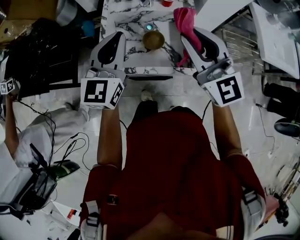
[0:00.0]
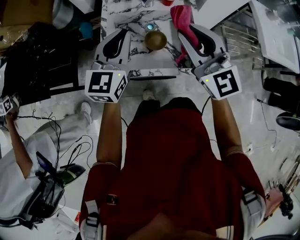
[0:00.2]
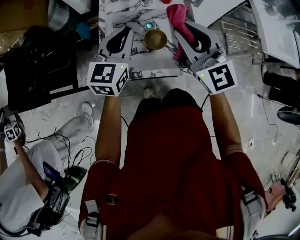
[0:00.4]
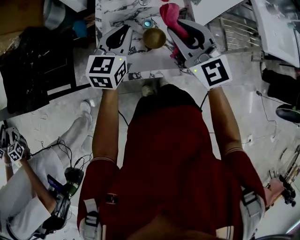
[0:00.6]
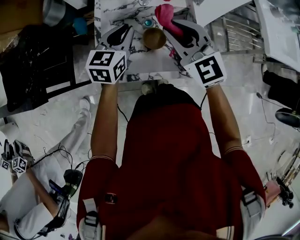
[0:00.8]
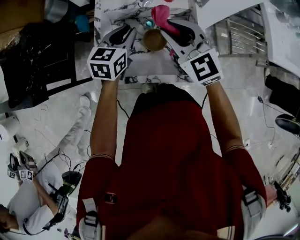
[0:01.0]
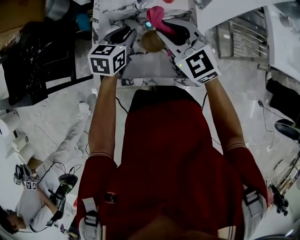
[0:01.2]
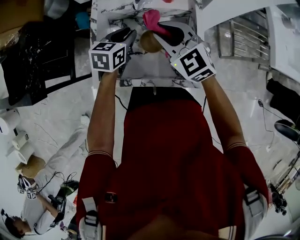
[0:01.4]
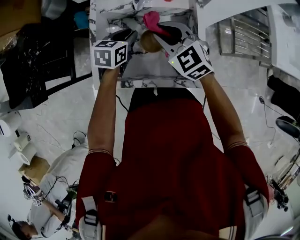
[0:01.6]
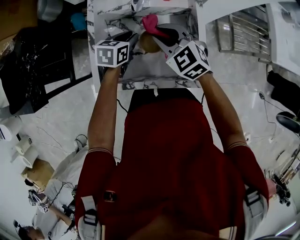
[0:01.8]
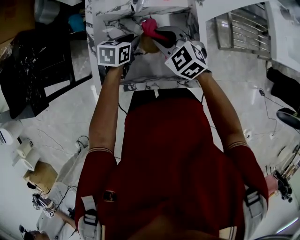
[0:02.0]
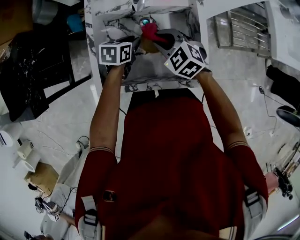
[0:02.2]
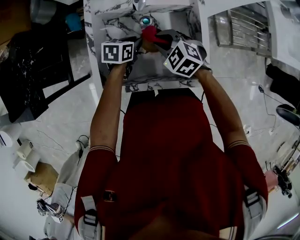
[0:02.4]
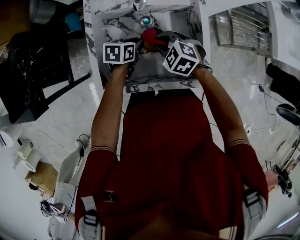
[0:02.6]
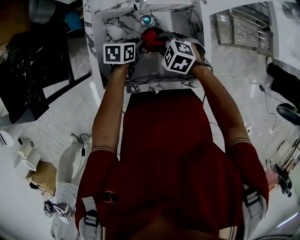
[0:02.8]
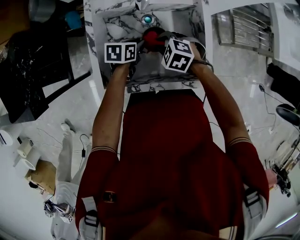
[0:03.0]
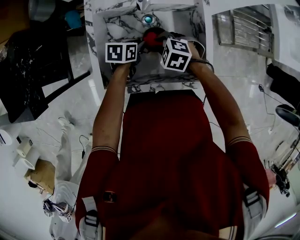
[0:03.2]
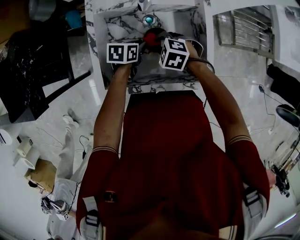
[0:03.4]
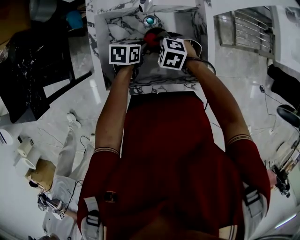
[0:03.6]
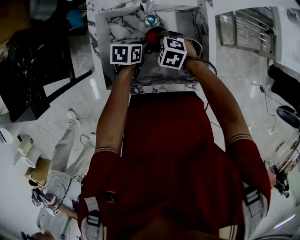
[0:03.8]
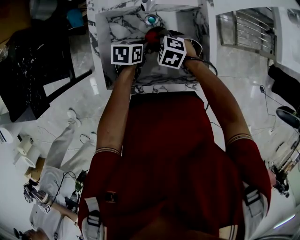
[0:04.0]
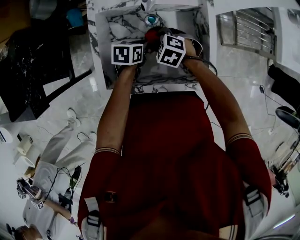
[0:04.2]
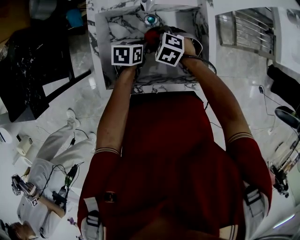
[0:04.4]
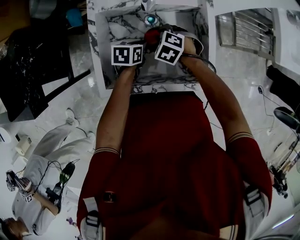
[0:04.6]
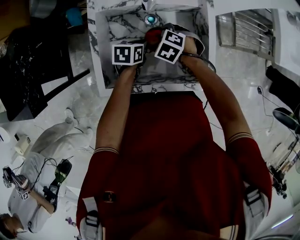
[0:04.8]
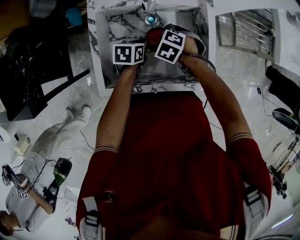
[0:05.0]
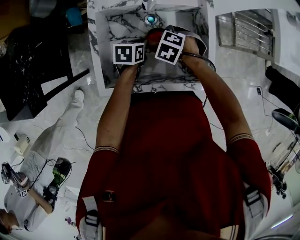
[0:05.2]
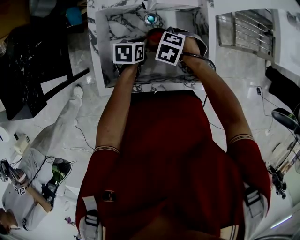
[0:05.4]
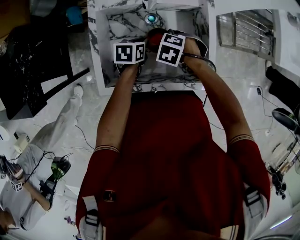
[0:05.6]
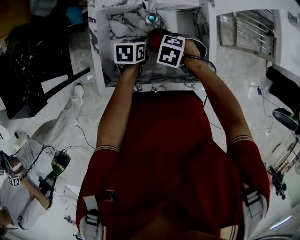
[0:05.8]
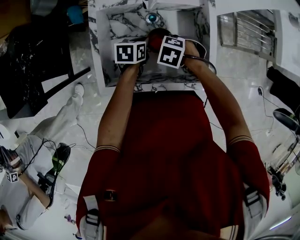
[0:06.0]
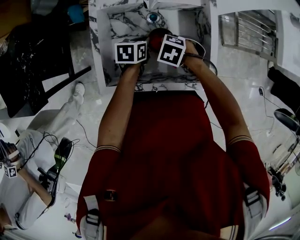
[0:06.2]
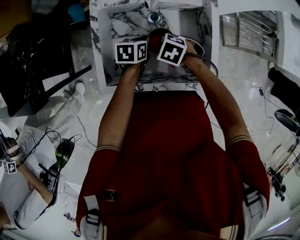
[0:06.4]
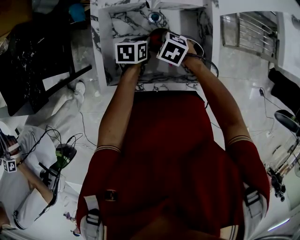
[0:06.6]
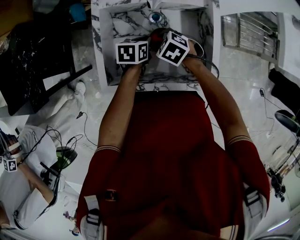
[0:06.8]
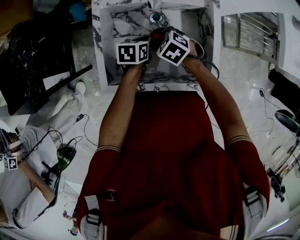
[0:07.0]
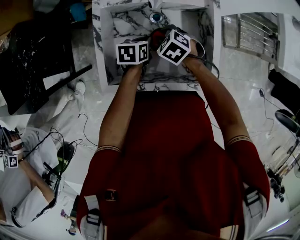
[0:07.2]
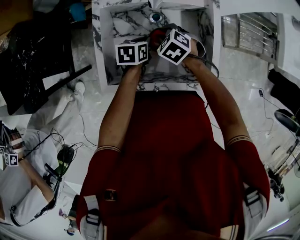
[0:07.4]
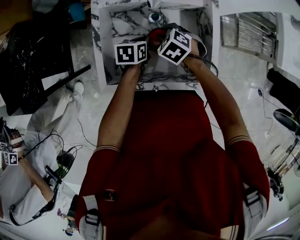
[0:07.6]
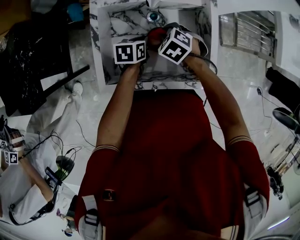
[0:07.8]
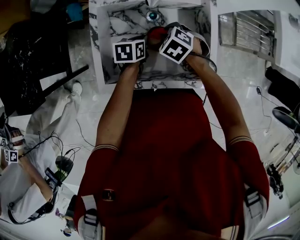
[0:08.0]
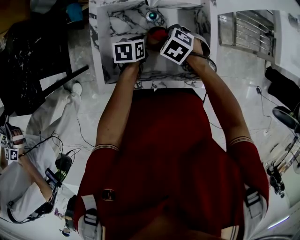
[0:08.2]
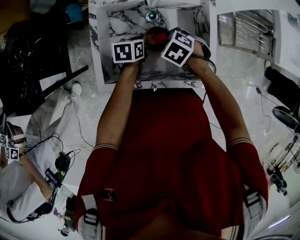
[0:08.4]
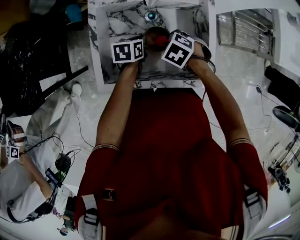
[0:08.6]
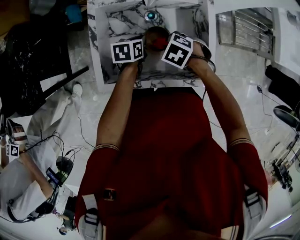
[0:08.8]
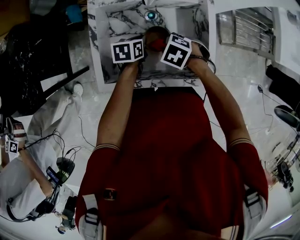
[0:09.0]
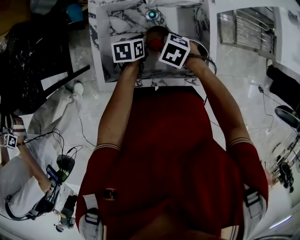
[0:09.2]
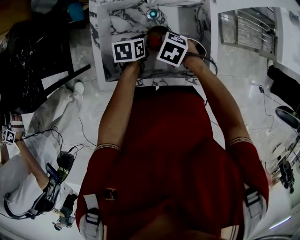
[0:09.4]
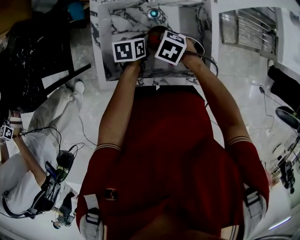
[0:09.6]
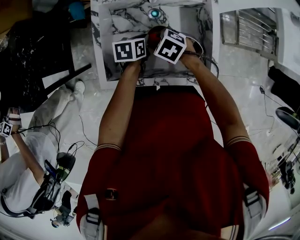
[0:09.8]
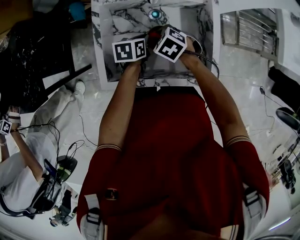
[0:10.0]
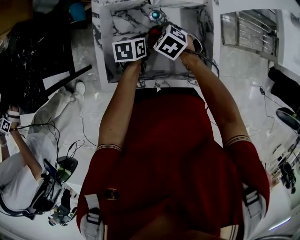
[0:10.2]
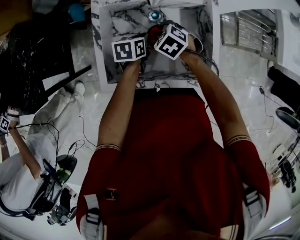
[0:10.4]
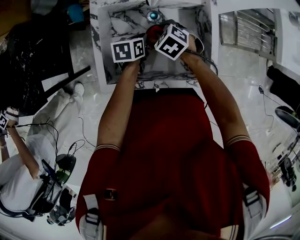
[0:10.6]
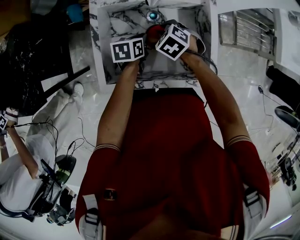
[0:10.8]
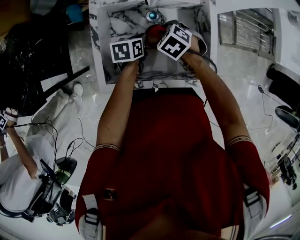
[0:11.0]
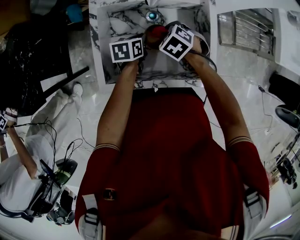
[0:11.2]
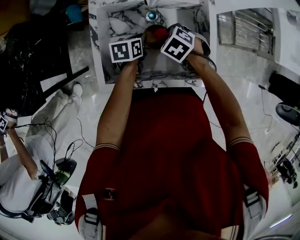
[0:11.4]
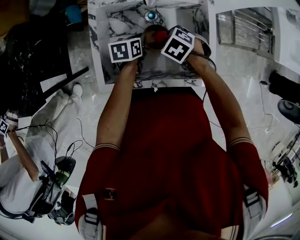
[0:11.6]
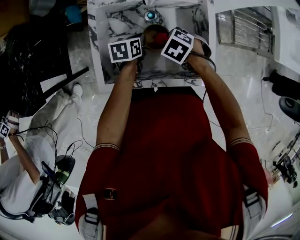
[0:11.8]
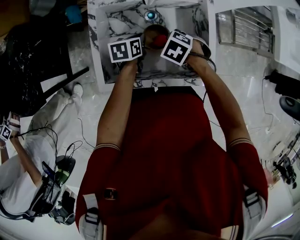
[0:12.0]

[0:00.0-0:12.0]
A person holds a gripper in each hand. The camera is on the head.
0.0 to 1.6 s: Both grippers travel together downward and forward, approximately 25 cm. The right gripper angles its fingers downward, by about 30 degrees. Meanwhile the left gripper points its fingers some 40 degrees further downward.
1.6 to 3.0 s: The two grippers go some 15 cm downward. The right gripper angles its fingers downward, by approximately 30 degrees; the left gripper changes its angle by some 20 degrees.
3.0 to 4.4 s: The right gripper changes place by approximately 5 cm.
4.4 to 6.0 s: The right gripper shifts by approximately 5 cm.
6.0 to 7.6 s: The right gripper changes place by some 5 cm, and swivels approximately 20 degrees.
7.6 to 9.0 s: The right gripper moves roughly 5 cm.
9.0 to 10.4 s: The right gripper shifts by about 10 cm.
10.4 to 12.0 s: The right gripper ends up some 5 cm from where it was.

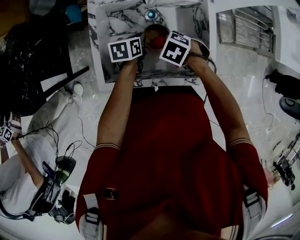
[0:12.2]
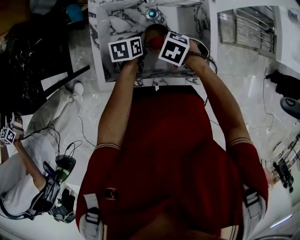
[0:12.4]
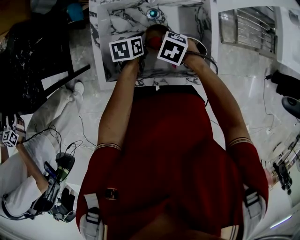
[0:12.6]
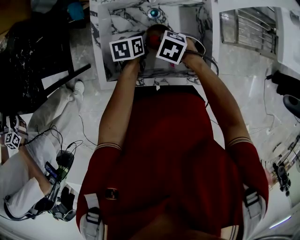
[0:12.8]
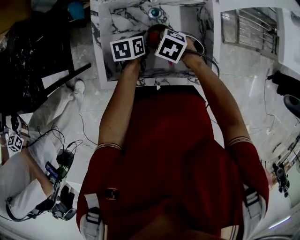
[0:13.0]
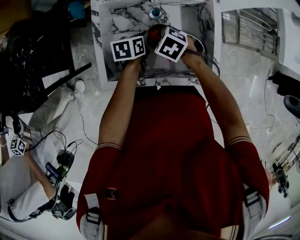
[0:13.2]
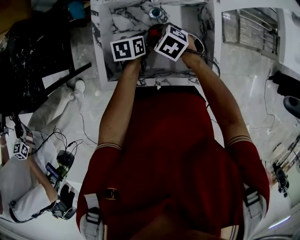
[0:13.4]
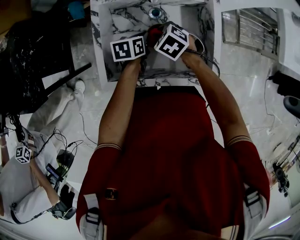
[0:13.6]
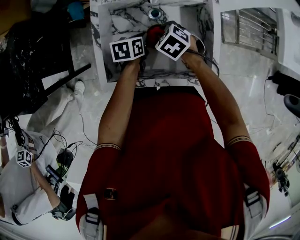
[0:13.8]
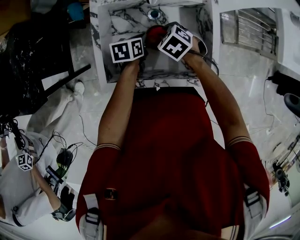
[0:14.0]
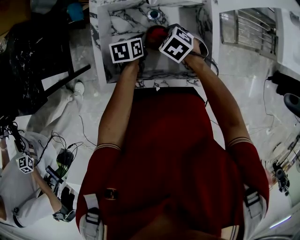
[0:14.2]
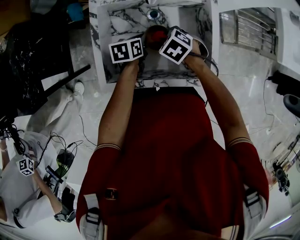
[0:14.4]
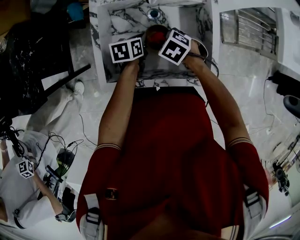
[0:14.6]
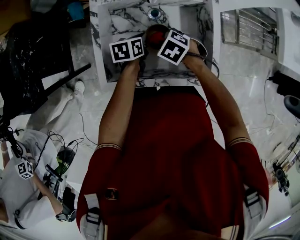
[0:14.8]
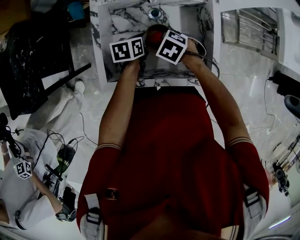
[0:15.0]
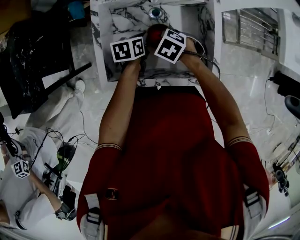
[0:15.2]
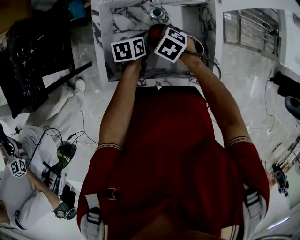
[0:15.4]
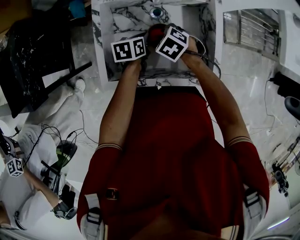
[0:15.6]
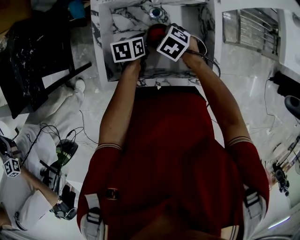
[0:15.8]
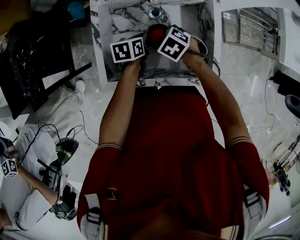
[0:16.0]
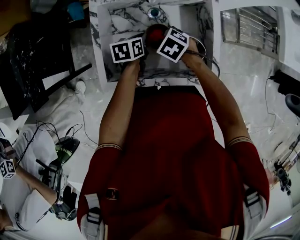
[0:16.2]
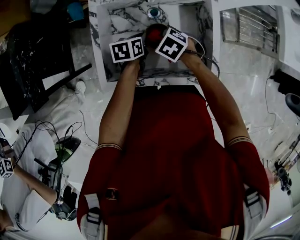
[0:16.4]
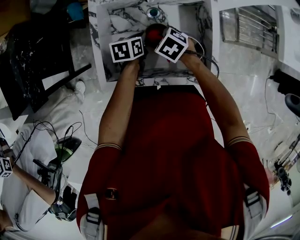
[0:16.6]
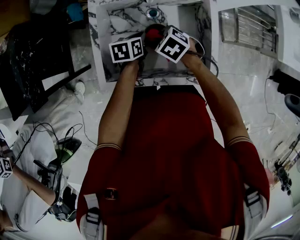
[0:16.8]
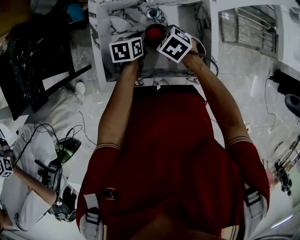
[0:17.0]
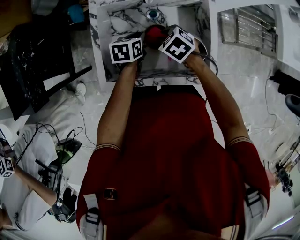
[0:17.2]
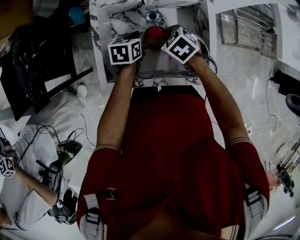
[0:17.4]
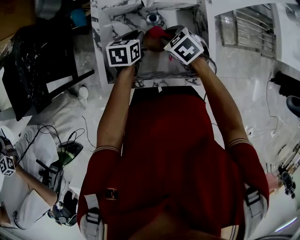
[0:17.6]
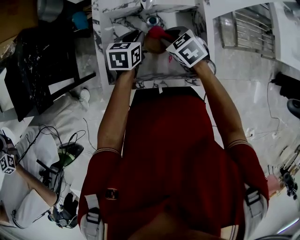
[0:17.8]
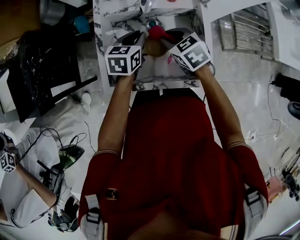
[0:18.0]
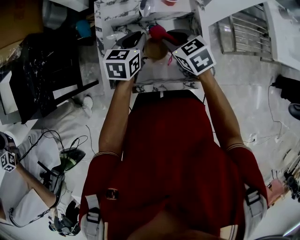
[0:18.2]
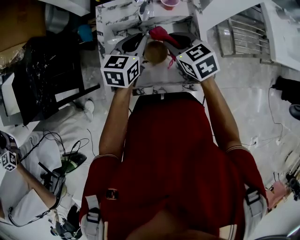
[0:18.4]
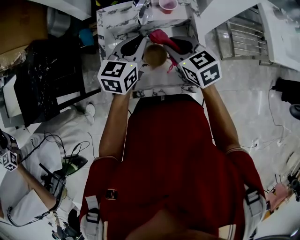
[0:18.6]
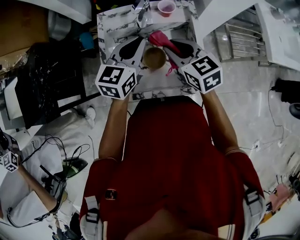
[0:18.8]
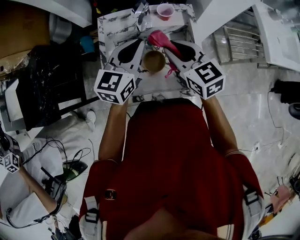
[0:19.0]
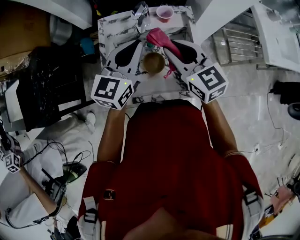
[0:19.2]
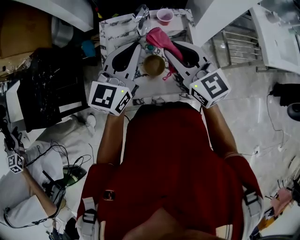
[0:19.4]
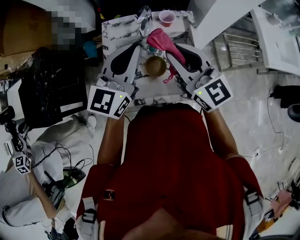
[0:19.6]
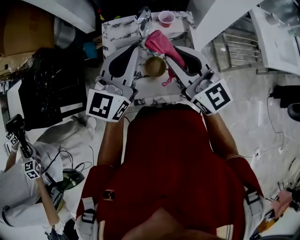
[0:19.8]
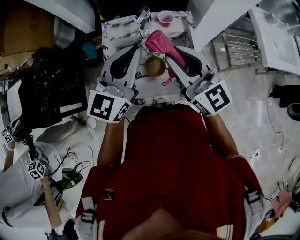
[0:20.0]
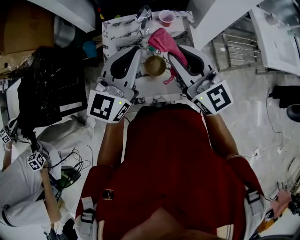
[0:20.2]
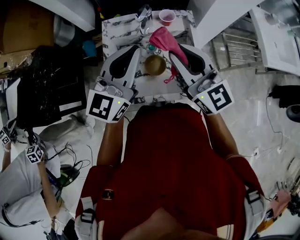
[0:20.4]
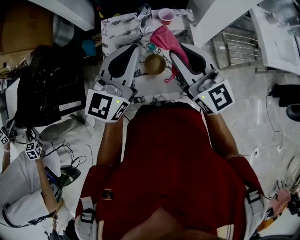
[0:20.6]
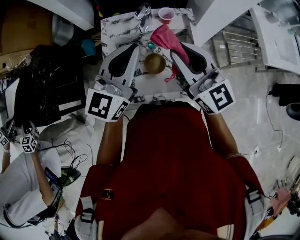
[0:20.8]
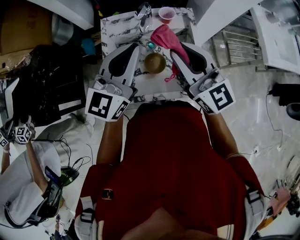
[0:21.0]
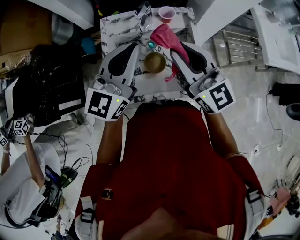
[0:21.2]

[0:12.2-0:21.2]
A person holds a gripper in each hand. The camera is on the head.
12.2 to 13.8 s: The right gripper shifts by some 5 cm.
13.8 to 16.6 s: The grippers move only a little.
16.6 to 18.2 s: The two grippers go about 15 cm upward. The left gripper swivels roughly 30 degrees. Meanwhile the right gripper rotates approximately 30 degrees.
18.2 to 19.8 s: Both grippers travel together upward, some 20 cm. The left gripper tips its fingers upward by about 40 degrees. Meanwhile the right gripper tilts its fingers about 50 degrees upward.
19.8 to 21.2 s: The two grippers keep their place.

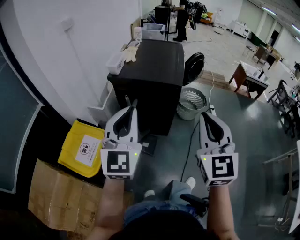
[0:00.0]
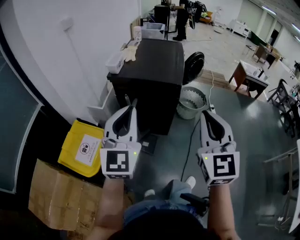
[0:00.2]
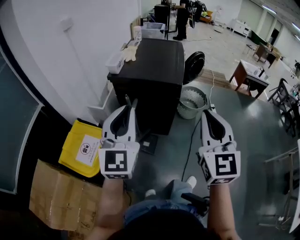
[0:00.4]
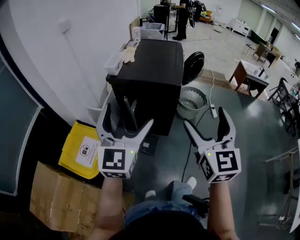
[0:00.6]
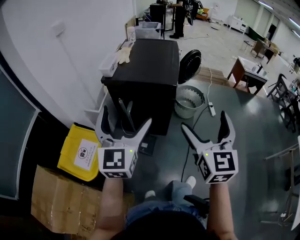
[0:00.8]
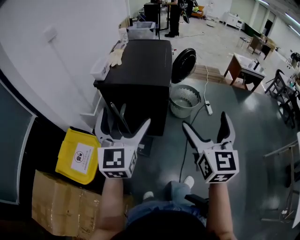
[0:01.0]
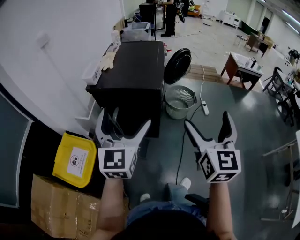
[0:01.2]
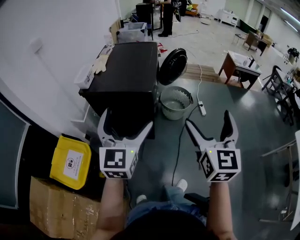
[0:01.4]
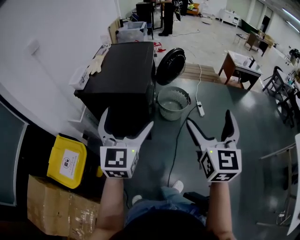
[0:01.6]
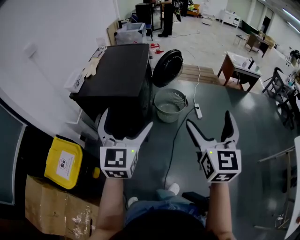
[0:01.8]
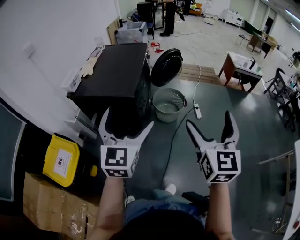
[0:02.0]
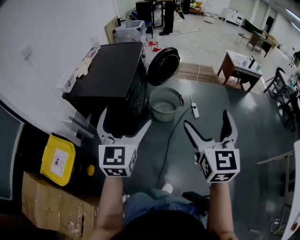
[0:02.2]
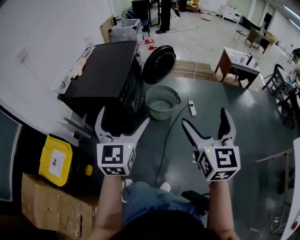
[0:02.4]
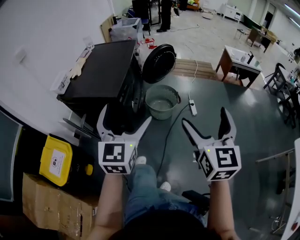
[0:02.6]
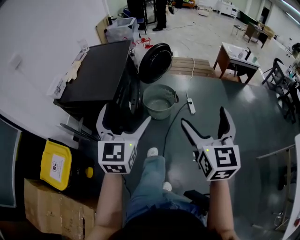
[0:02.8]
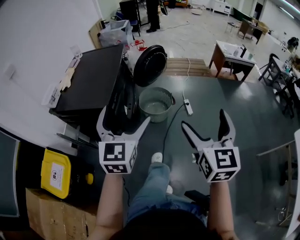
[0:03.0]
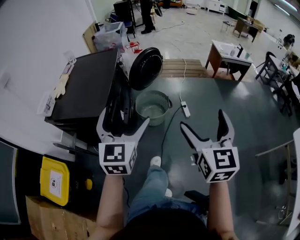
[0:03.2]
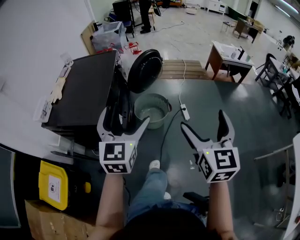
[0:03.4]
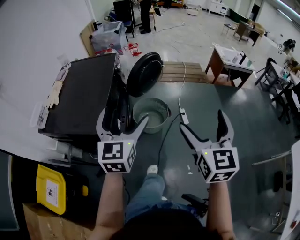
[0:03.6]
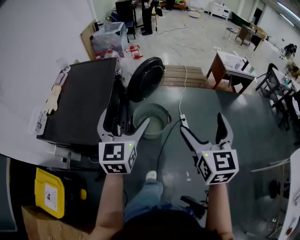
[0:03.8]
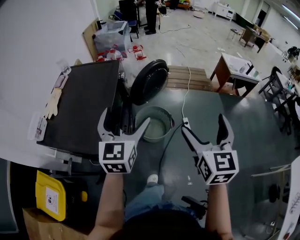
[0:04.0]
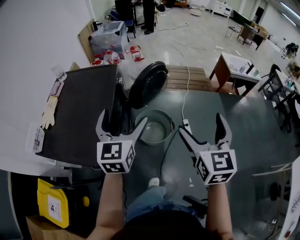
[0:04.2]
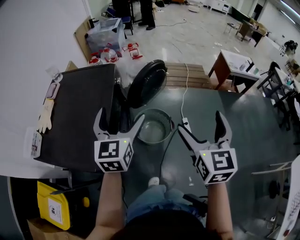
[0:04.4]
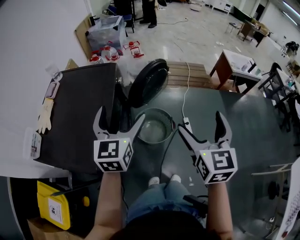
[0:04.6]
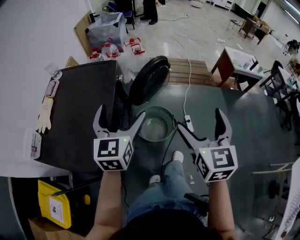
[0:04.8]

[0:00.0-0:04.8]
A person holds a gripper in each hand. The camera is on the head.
0.0 to 1.6 s: The two grippers go roughly 25 cm to the right and forward. The right gripper opens up, while the left gripper opens its fingers.
1.6 to 3.2 s: Both grippers travel together to the right and forward, roughly 25 cm.
3.2 to 4.8 s: Both grippers travel together forward, approximately 35 cm.
